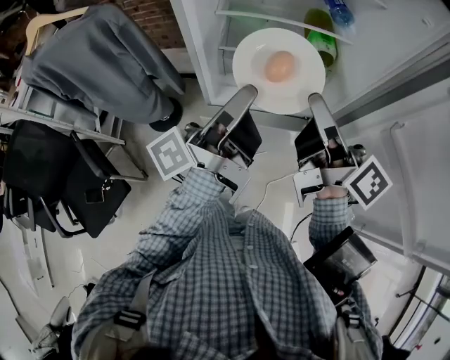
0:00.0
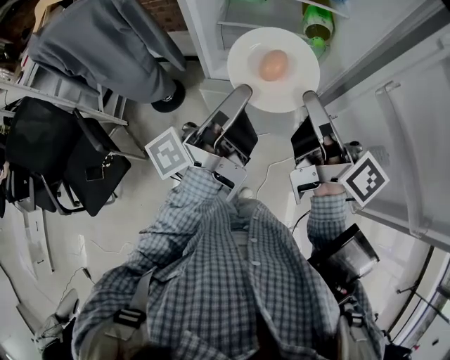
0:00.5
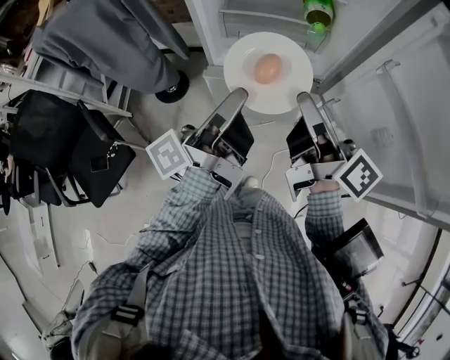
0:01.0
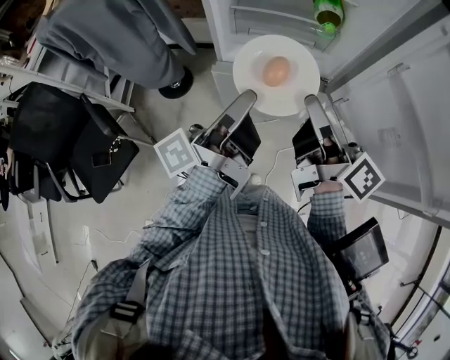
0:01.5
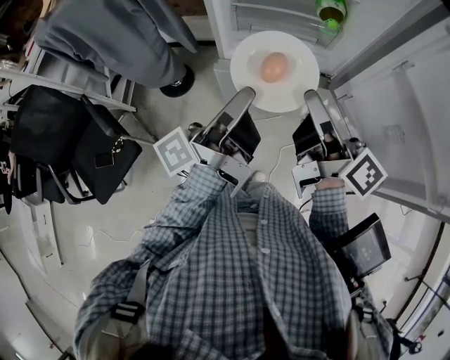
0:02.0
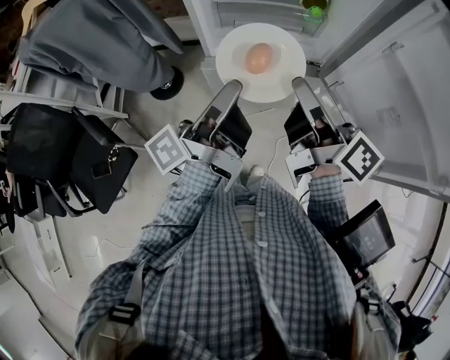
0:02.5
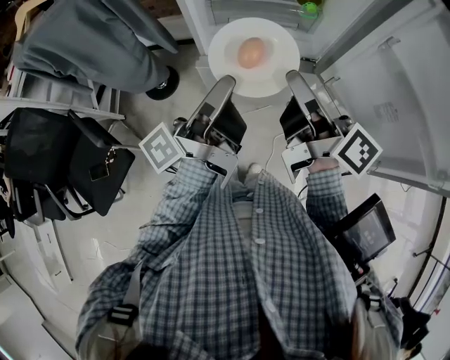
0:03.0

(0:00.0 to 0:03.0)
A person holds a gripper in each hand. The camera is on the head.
0:00.0 - 0:01.5: The grippers both shift backward and downward by about 15 cm.
0:01.5 - 0:03.0: The grippers make only small movements.

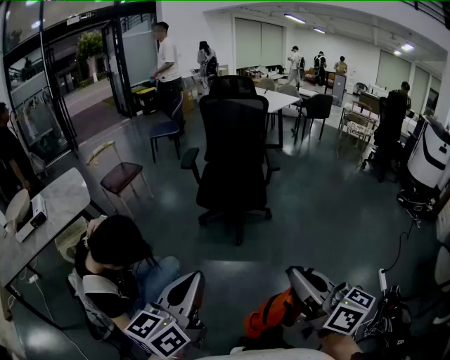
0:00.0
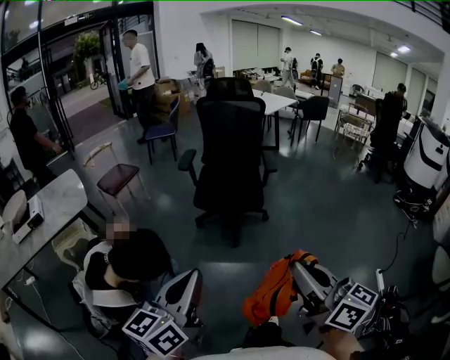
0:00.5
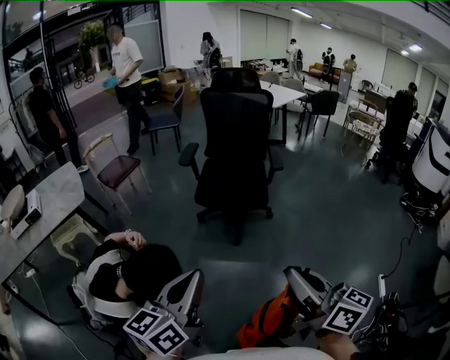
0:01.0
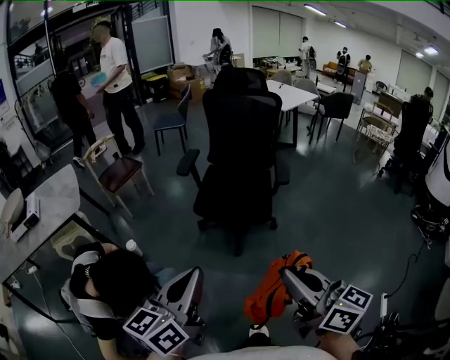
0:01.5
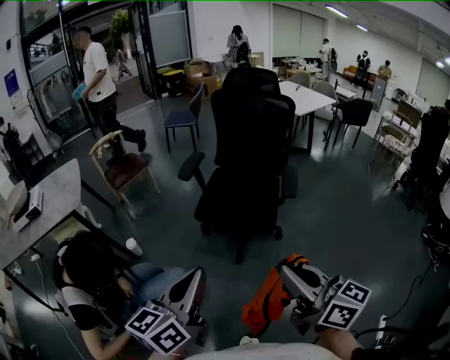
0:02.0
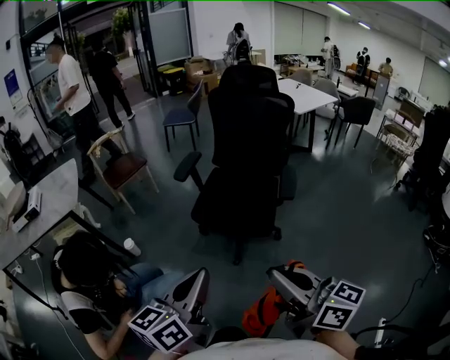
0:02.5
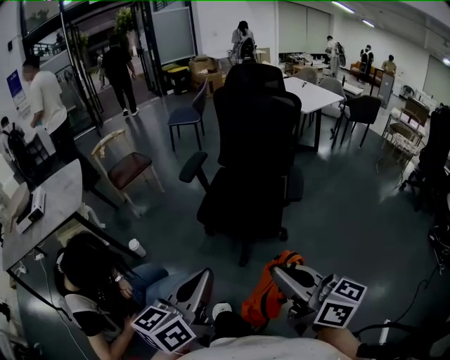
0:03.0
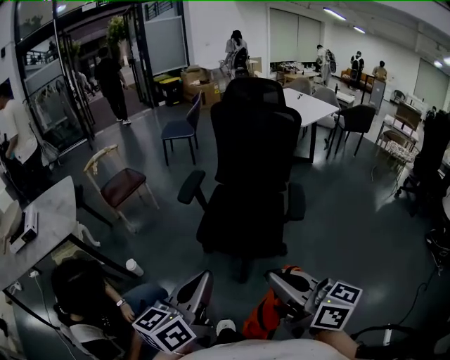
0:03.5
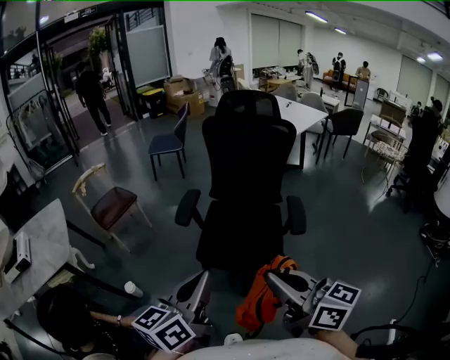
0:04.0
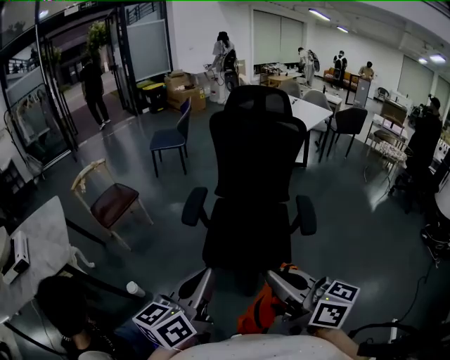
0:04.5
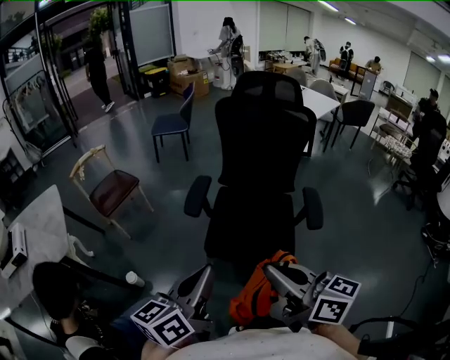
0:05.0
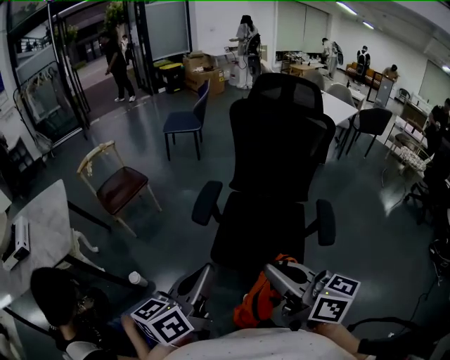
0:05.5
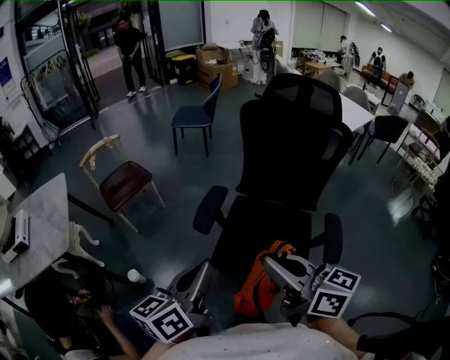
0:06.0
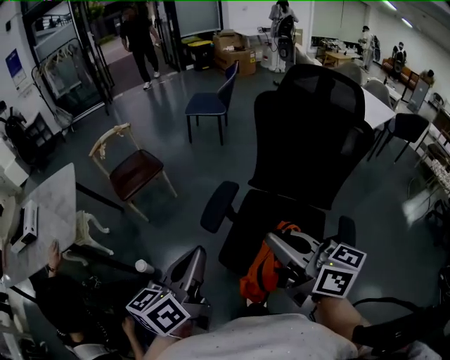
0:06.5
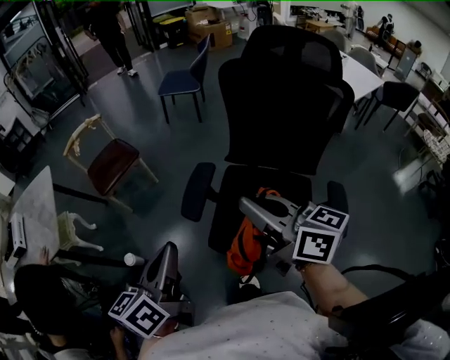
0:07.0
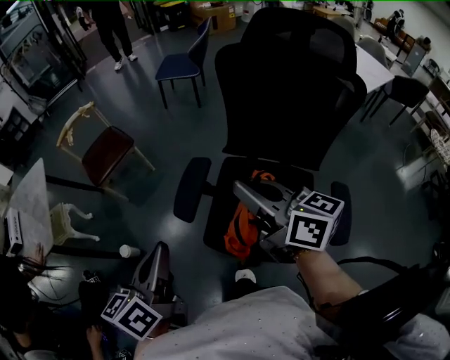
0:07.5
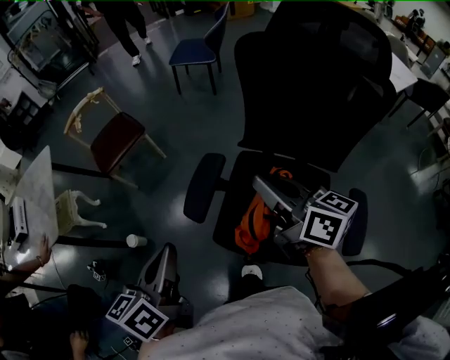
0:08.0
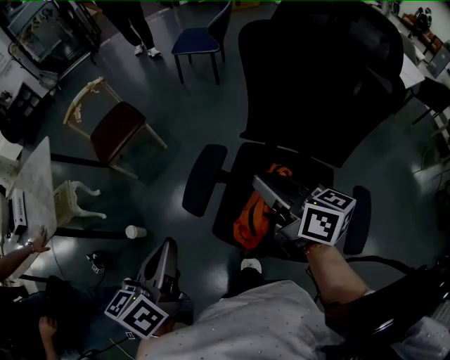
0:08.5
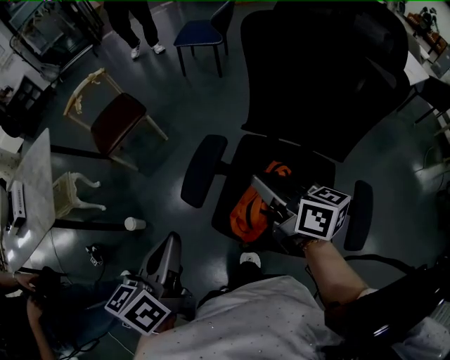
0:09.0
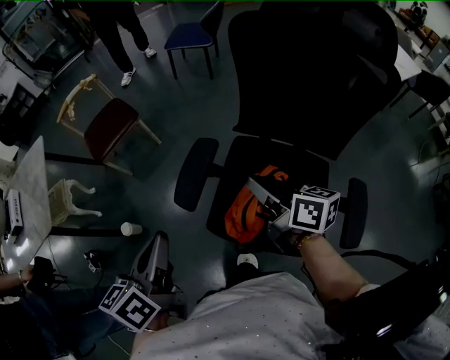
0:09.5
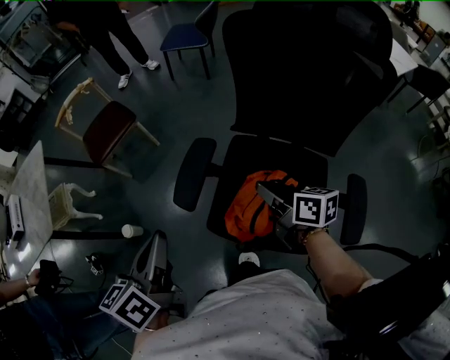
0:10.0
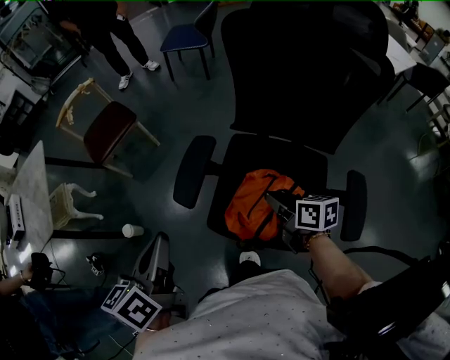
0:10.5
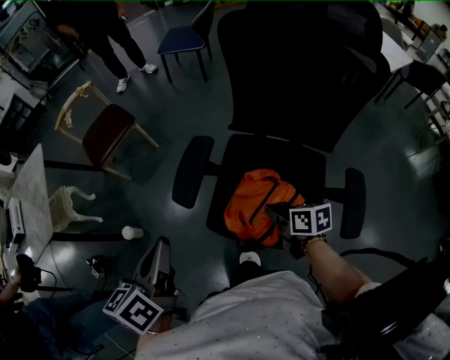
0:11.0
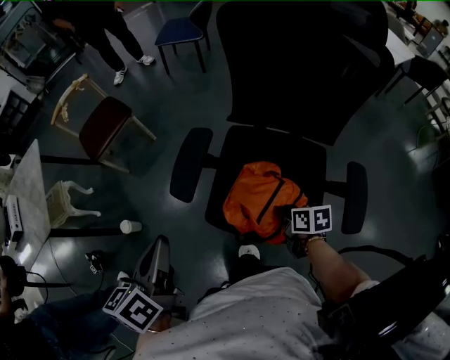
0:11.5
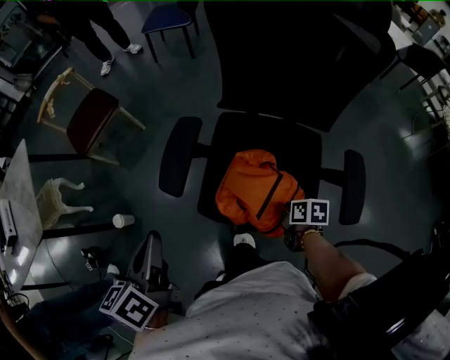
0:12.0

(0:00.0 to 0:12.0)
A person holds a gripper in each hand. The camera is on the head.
0:00.0 - 0:02.0: Both grippers travel together forward and to the right, approximately 30 cm.
0:02.0 - 0:04.0: Both grippers move forward, some 20 cm.
0:04.0 - 0:06.0: Both grippers travel together forward, roughly 20 cm.
0:06.0 - 0:08.0: The right gripper moves forward and to the right, some 30 cm. Meanwhile the left gripper travels forward and downward by approximately 15 cm, and swivels some 20 degrees.
0:08.0 - 0:10.0: The right gripper moves downward, some 15 cm, and rotates roughly 20 degrees.
0:10.0 - 0:12.0: The left gripper ends up roughly 5 cm from where it was. Meanwhile the right gripper travels downward and backward by approximately 25 cm, and angles its fingers downward, by some 30 degrees.

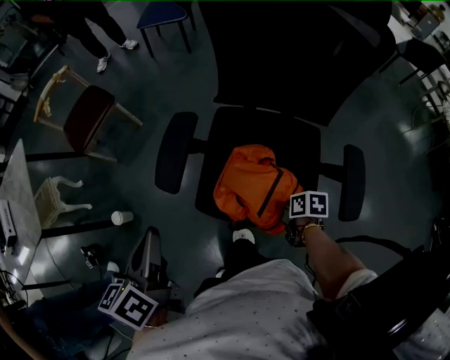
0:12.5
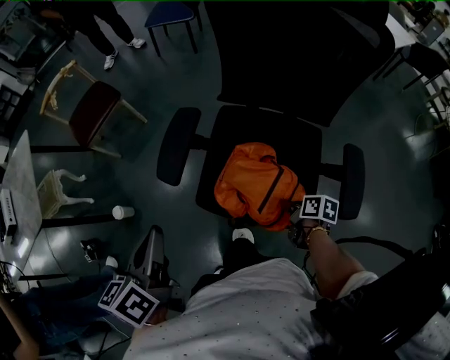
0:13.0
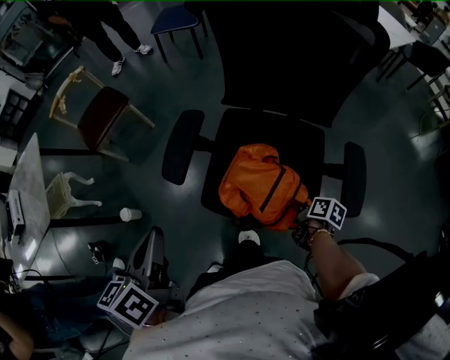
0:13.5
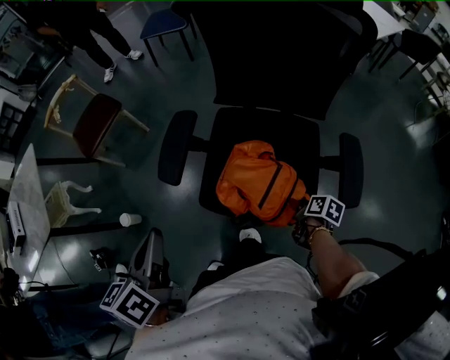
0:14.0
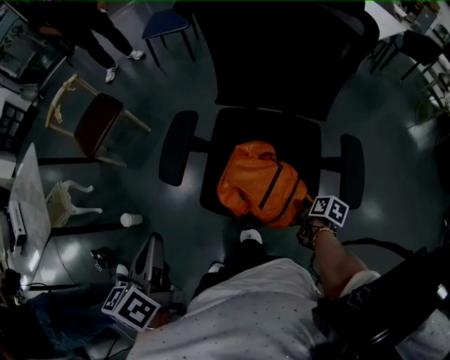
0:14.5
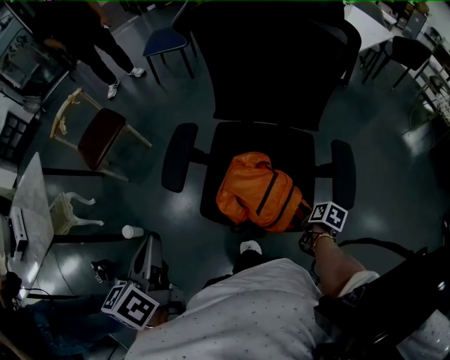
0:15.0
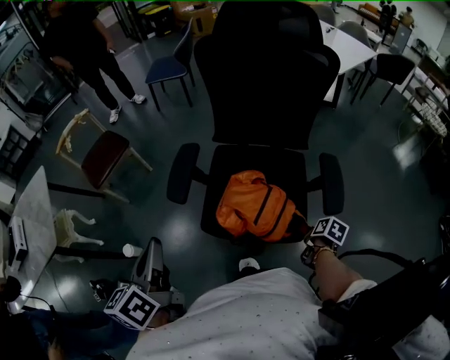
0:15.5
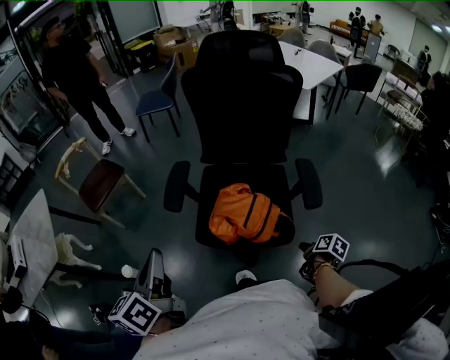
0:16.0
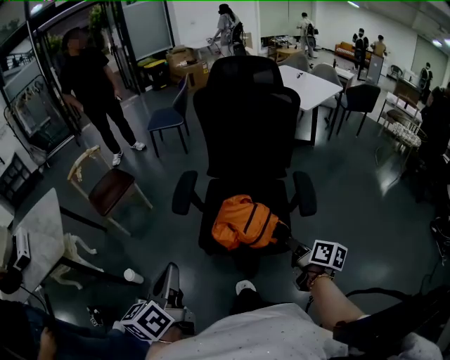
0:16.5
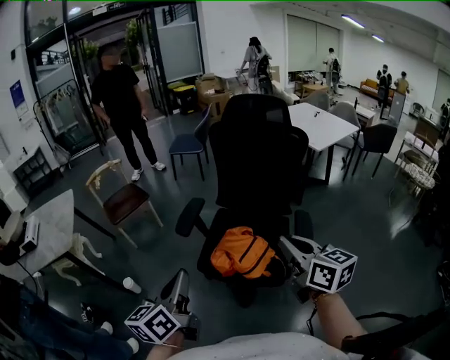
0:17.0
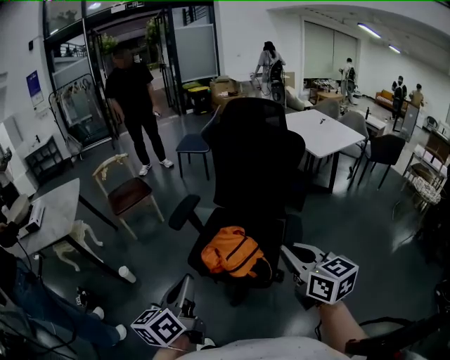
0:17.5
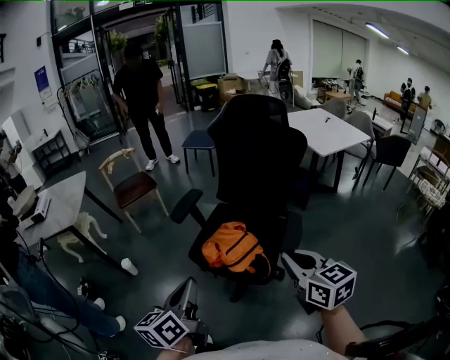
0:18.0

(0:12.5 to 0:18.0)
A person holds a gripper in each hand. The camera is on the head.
0:12.5 - 0:14.5: The right gripper is displaced backward and to the right by some 10 cm, turns by roughly 30 degrees, and opens up.
0:14.5 - 0:16.0: The left gripper moves backward and upward, about 10 cm; the right gripper shifts roughly 20 cm backward and upward, and closes.
0:16.0 - 0:18.0: The left gripper goes about 25 cm to the right and backward; the right gripper travels upward by roughly 35 cm, twists some 70 degrees counterclockwise, seen from behind, and closes its fingers.

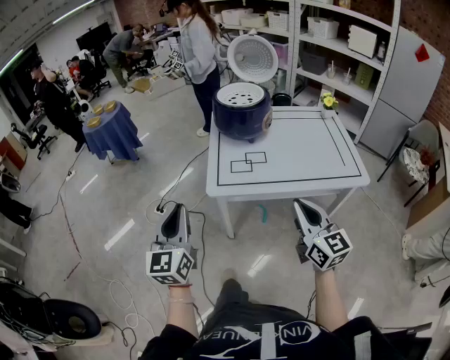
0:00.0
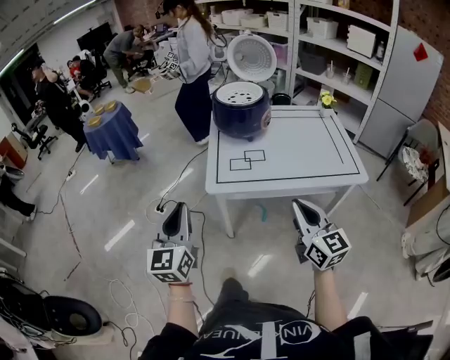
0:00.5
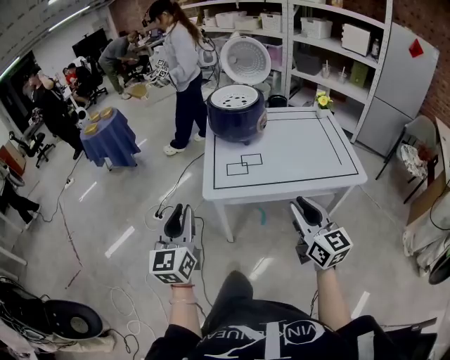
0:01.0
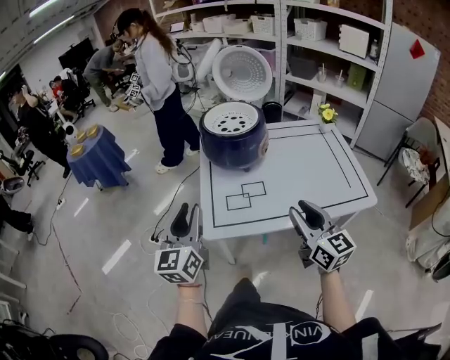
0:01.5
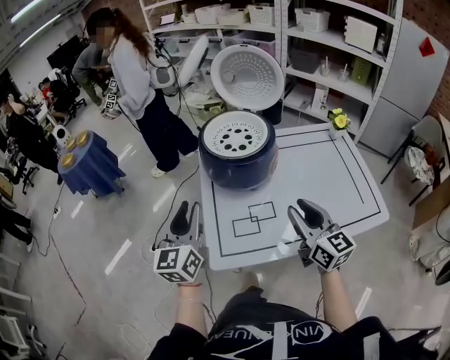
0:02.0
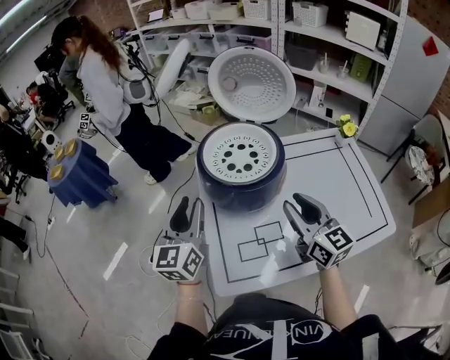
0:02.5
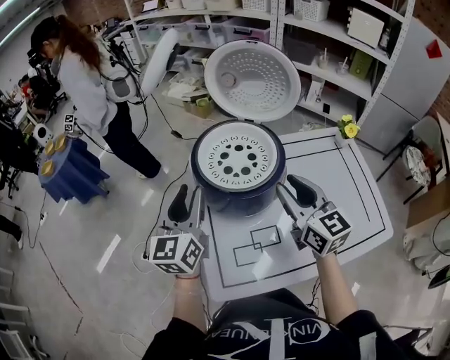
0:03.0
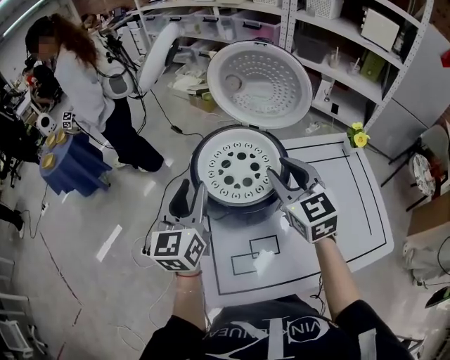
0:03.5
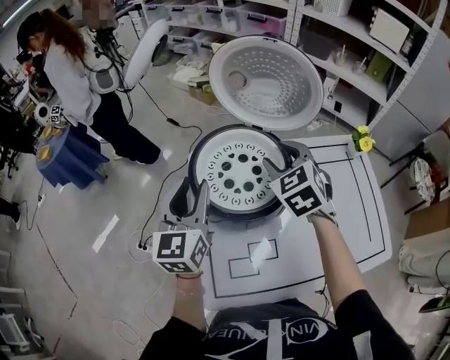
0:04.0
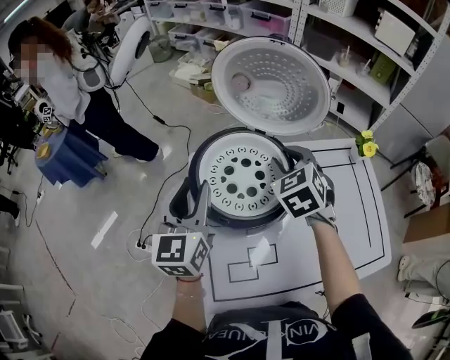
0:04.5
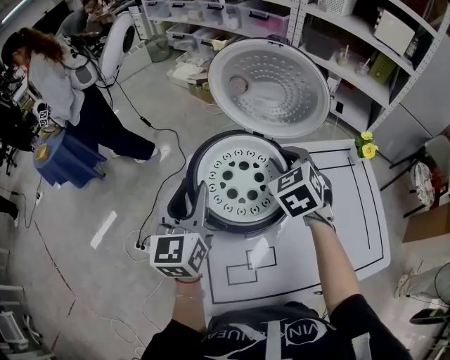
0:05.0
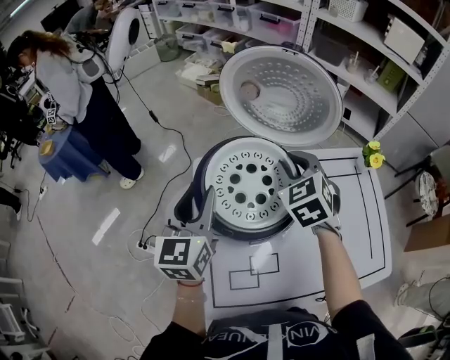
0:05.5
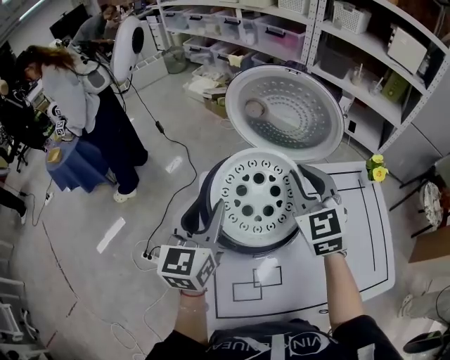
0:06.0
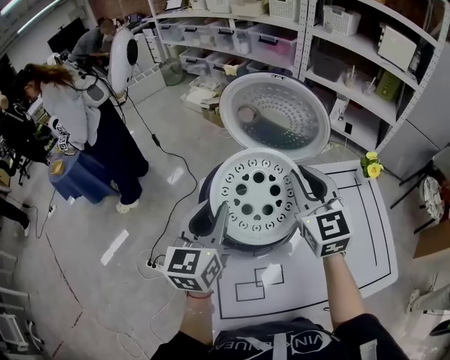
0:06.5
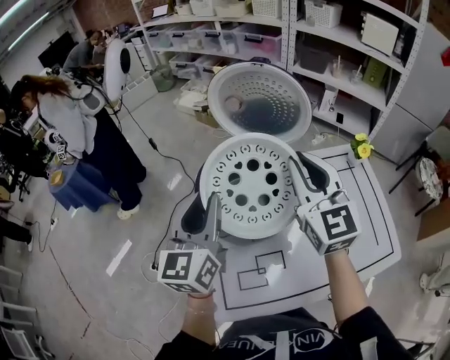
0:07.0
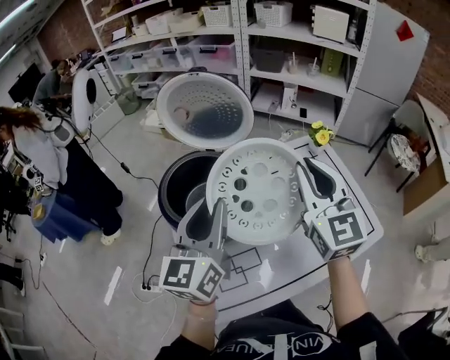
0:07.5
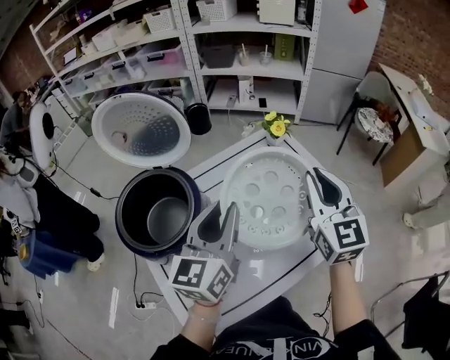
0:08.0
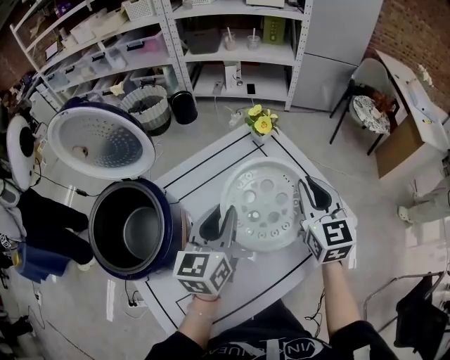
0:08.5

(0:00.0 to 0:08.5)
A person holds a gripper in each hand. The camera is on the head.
0:00.0 - 0:02.0: Both grippers move forward, approximately 30 cm. The right gripper opens.
0:02.0 - 0:04.0: Both grippers move forward, some 25 cm. The right gripper tips its fingers downward by approximately 30 degrees.
0:04.0 - 0:06.5: The right gripper is displaced upward by roughly 5 cm, swivels some 30 degrees, and closes.
0:06.5 - 0:08.5: The left gripper moves some 35 cm, and swivels some 30 degrees, while the right gripper ends up about 40 cm from where it was, and swivels approximately 40 degrees.
